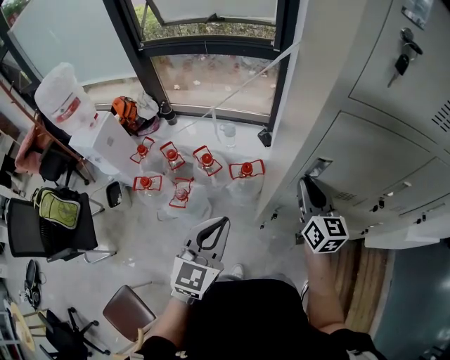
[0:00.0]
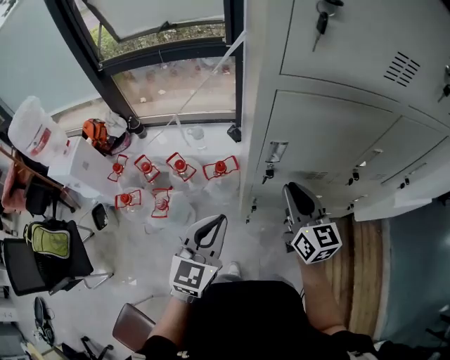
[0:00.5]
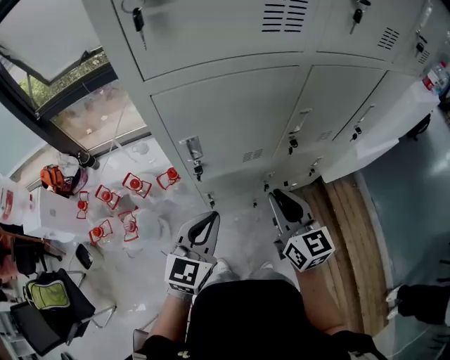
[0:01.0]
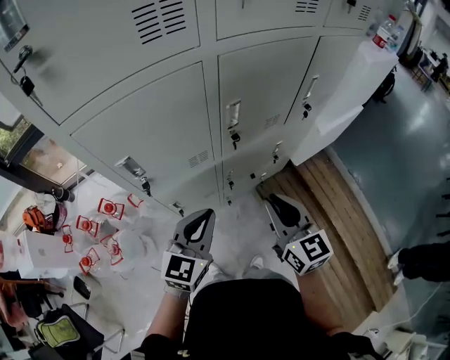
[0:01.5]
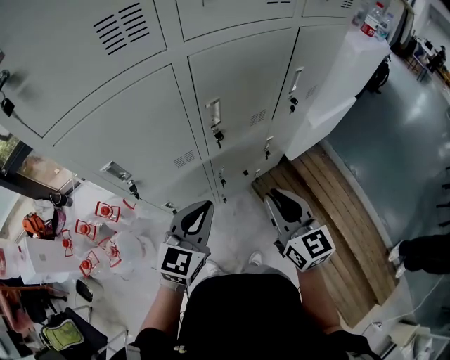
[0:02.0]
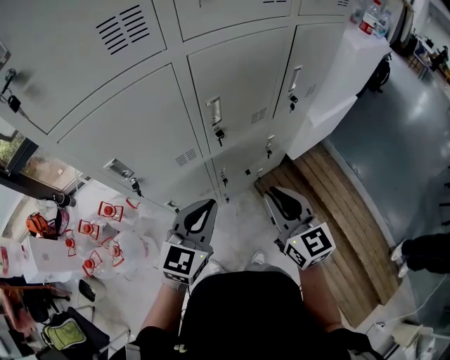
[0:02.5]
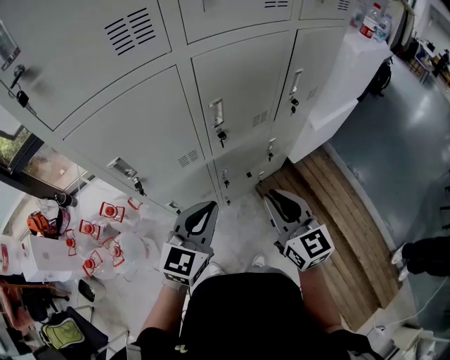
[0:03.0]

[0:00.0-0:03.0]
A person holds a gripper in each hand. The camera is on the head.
0:00.0 to 0:01.5: The right gripper shifts by roughly 35 cm, and changes its angle by some 20 degrees. The left gripper ends up roughly 30 cm from where it was, and changes its angle by approximately 40 degrees.
0:01.5 to 0:03.0: The left gripper changes place by roughly 5 cm.

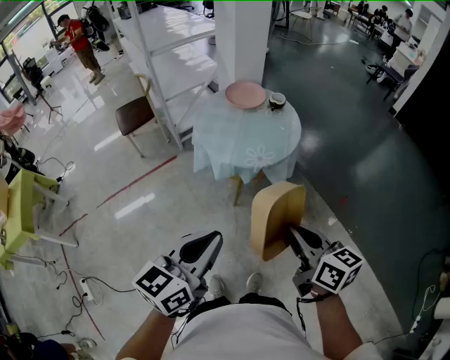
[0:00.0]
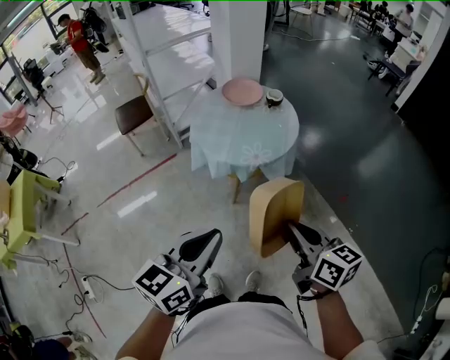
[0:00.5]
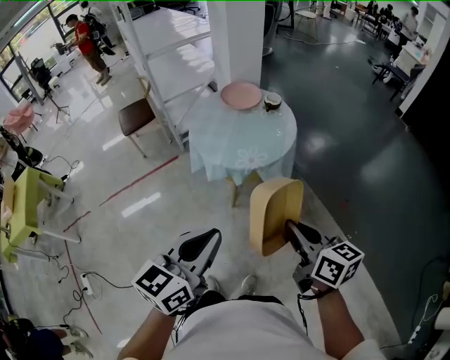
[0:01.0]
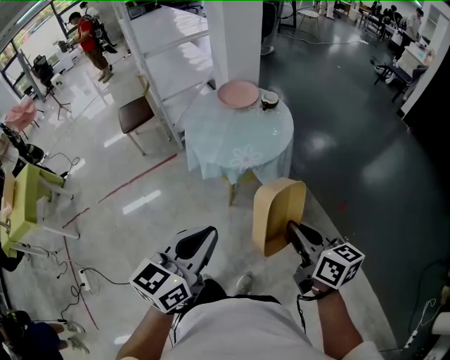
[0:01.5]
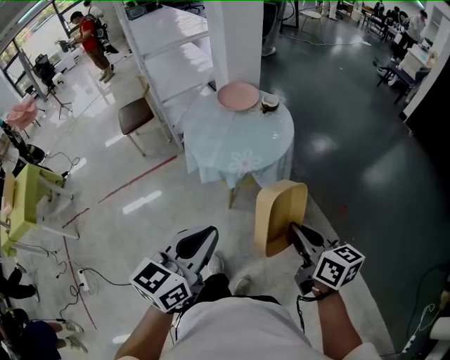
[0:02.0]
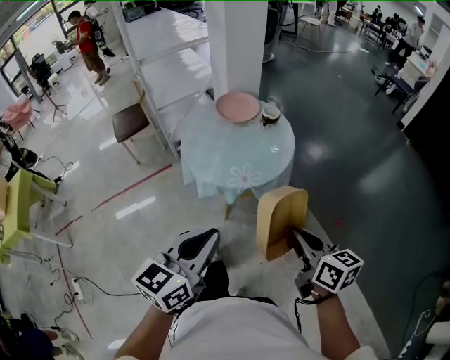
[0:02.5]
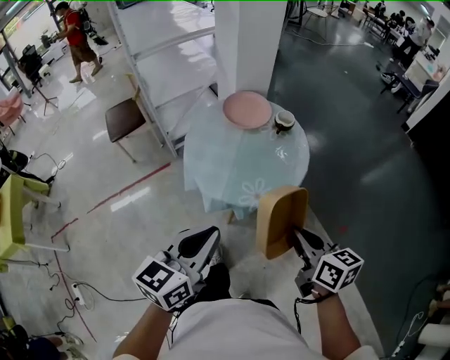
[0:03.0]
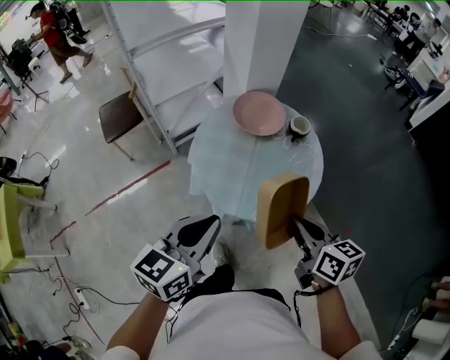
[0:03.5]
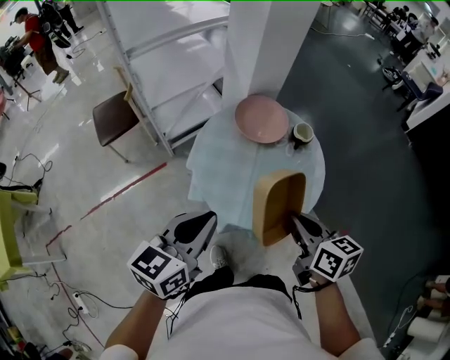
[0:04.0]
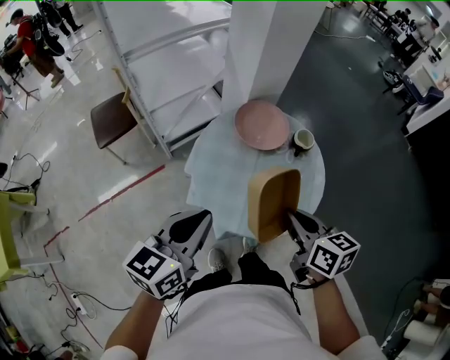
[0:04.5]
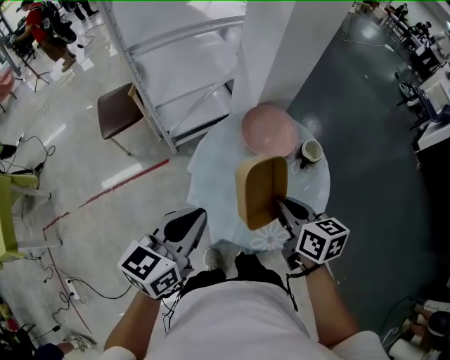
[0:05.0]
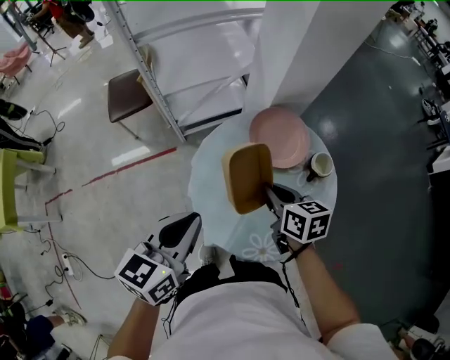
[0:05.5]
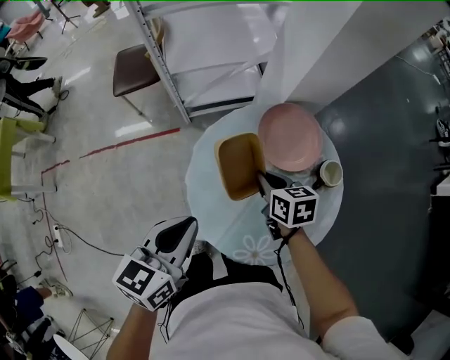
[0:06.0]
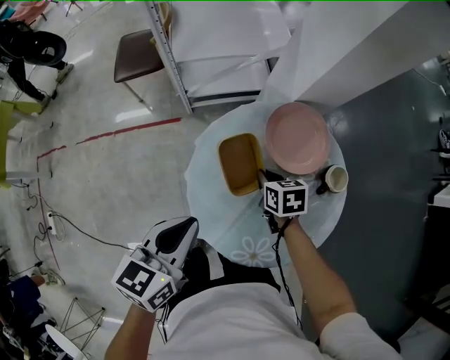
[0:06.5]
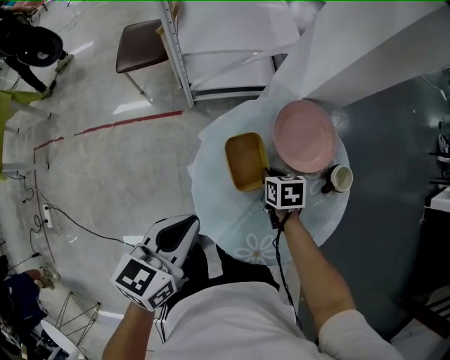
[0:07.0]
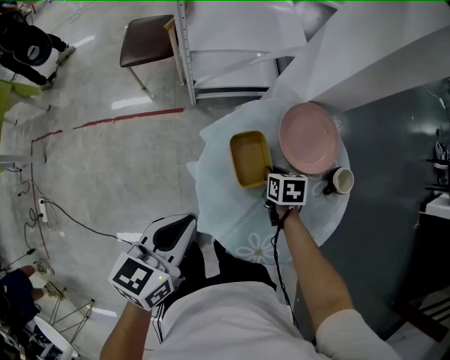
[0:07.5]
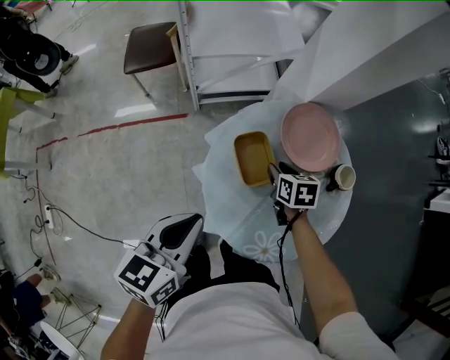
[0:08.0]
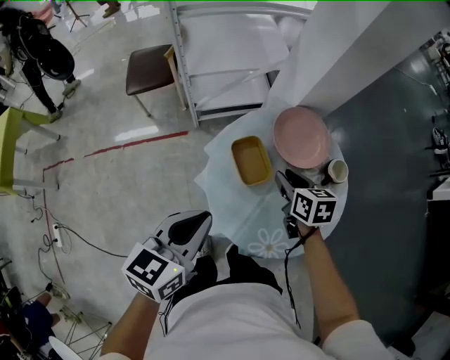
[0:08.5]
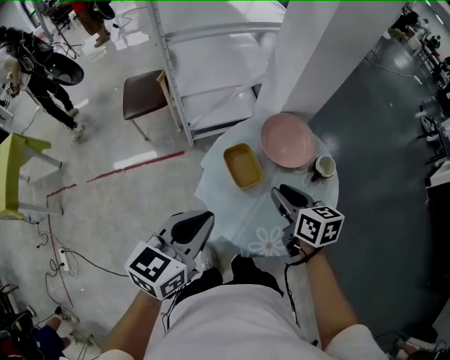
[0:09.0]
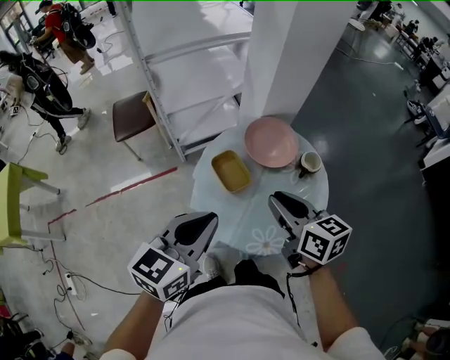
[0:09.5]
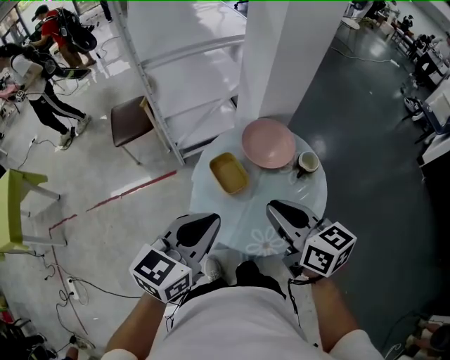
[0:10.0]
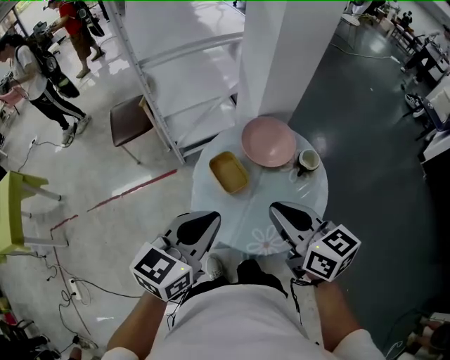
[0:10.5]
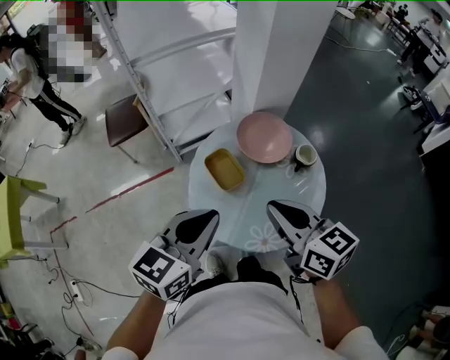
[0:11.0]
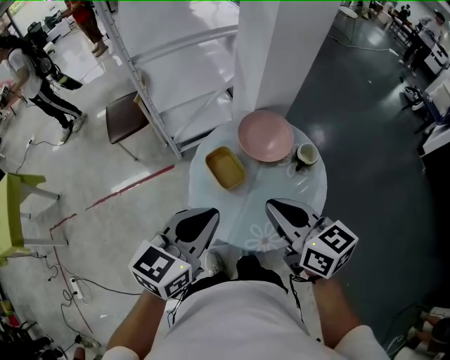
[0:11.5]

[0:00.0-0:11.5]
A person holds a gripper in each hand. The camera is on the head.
0:00.0 to 0:02.0: Both grippers move to the right, roughly 15 cm.
0:02.0 to 0:04.0: The pair of grippers is taken forward and to the left, some 40 cm.
0:04.0 to 0:06.0: The right gripper travels forward and downward by about 30 cm, and swivels about 30 degrees. Meanwhile the left gripper goes approximately 15 cm forward and downward, and rotates about 30 degrees.
0:06.0 to 0:07.5: The right gripper is displaced downward by about 10 cm, and swivels some 20 degrees; the left gripper travels to the left by about 5 cm.
0:07.5 to 0:09.5: The left gripper goes some 15 cm upward, to the right and backward, and rotates about 30 degrees, while the right gripper shifts roughly 35 cm upward and backward, and angles its fingers upward, by roughly 40 degrees.
0:09.5 to 0:11.5: The grippers move only a little.

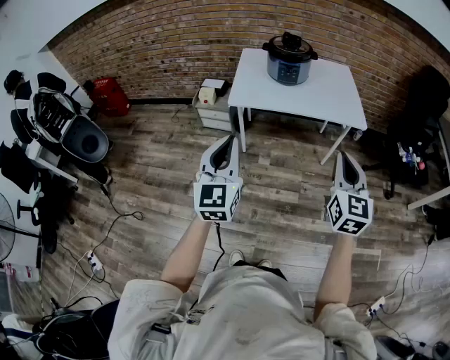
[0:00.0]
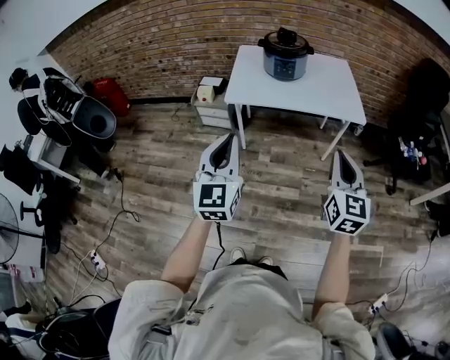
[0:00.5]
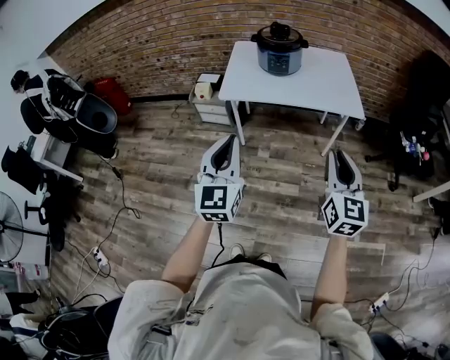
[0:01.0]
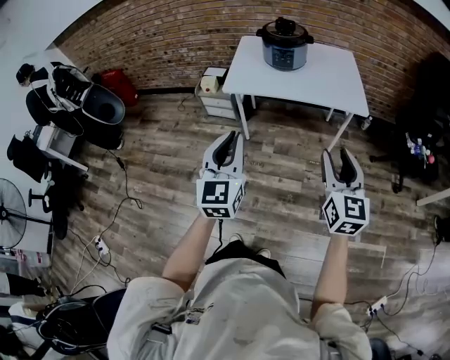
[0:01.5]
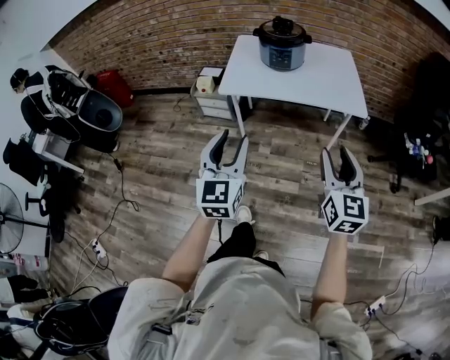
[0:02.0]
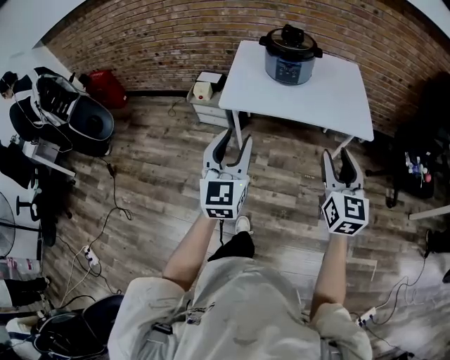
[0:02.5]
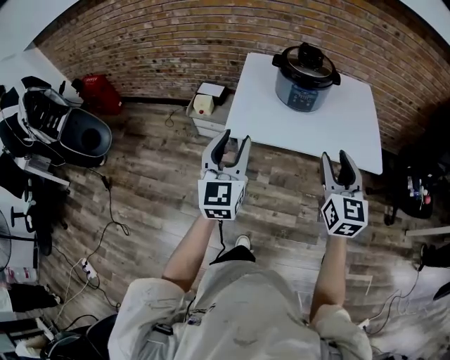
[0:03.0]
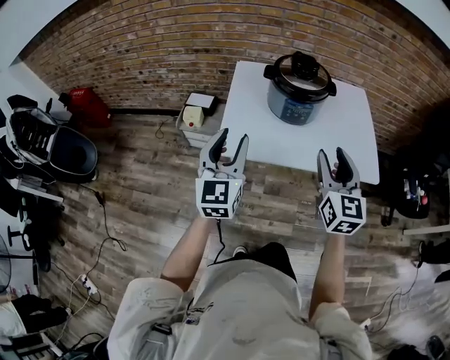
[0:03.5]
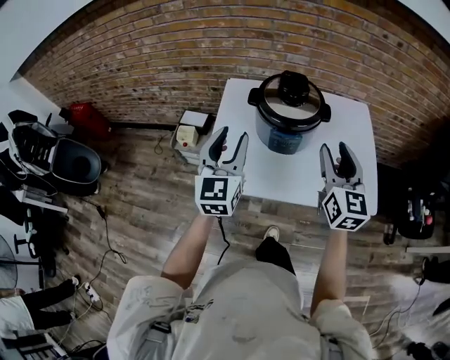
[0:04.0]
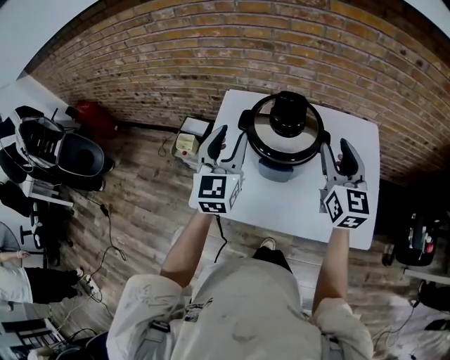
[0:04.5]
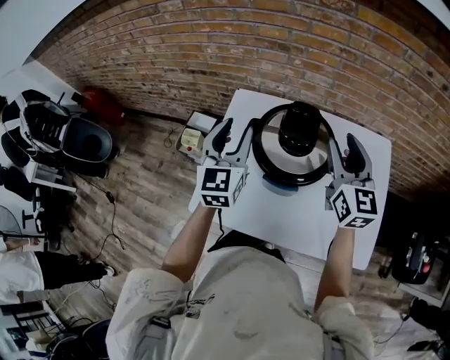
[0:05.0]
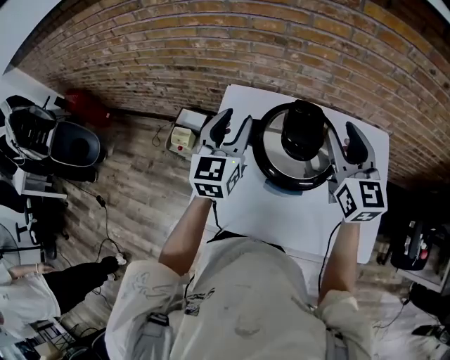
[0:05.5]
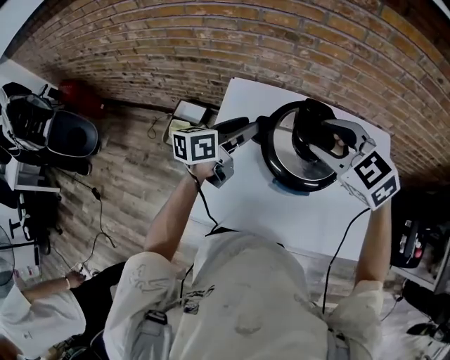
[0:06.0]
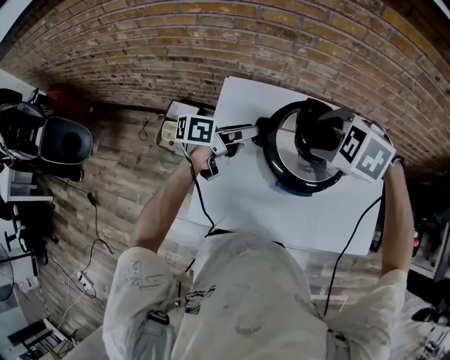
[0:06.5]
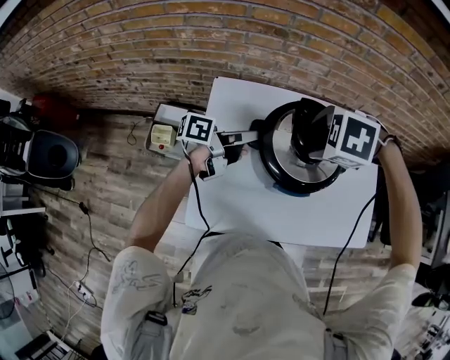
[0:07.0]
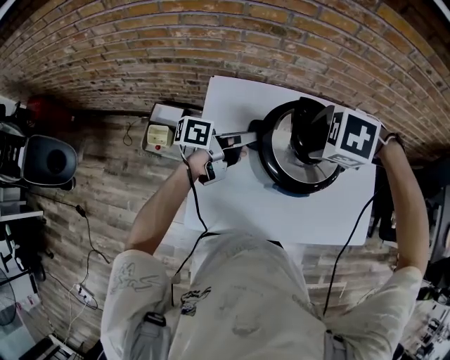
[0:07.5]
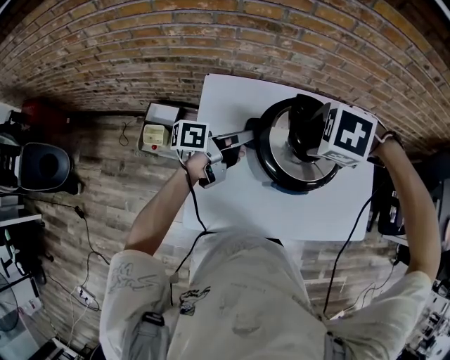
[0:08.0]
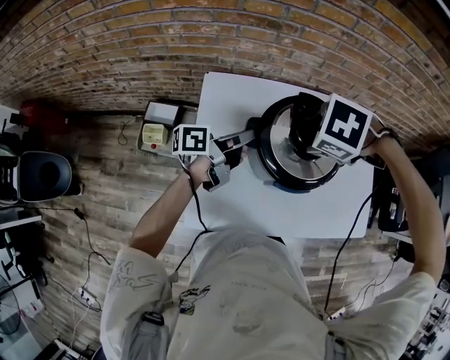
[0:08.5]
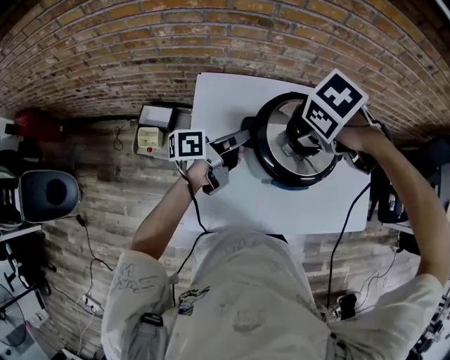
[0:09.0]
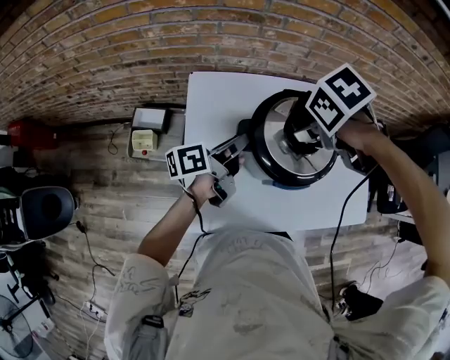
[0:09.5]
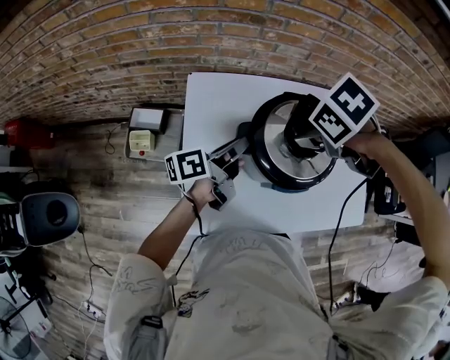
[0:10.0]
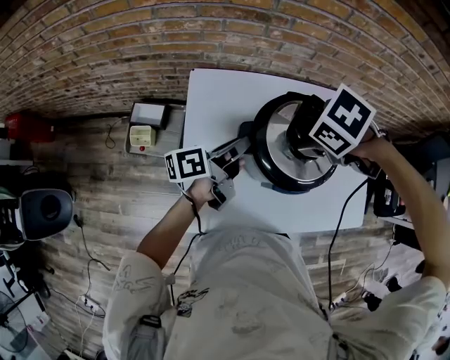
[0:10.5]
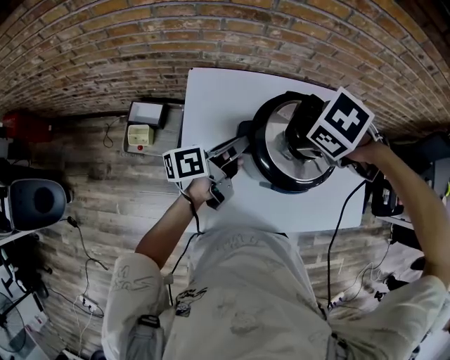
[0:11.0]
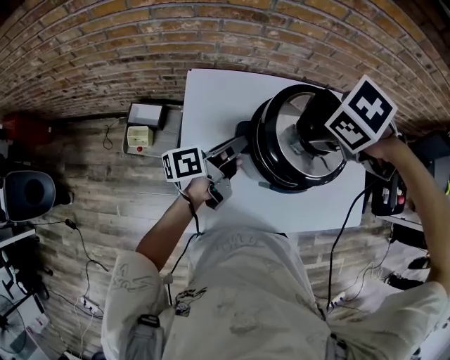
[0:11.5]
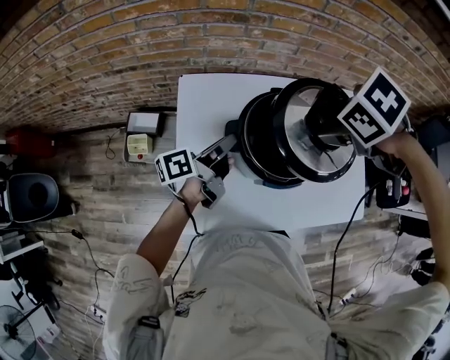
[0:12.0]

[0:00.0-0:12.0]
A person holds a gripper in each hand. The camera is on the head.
0:00.0 to 0:02.0: The right gripper changes place by roughly 5 cm, and opens up. Meanwhile the left gripper heads to the right, covering some 10 cm, and opens.
0:02.0 to 0:04.0: Both grippers are carried forward, roughly 50 cm.
0:04.0 to 0:06.0: The left gripper is displaced forward and downward by roughly 25 cm, and rotates approximately 60 degrees; the right gripper goes approximately 20 cm forward, and angles its fingers downward, by roughly 30 degrees.
0:06.0 to 0:08.0: The left gripper moves approximately 5 cm, turns by about 40 degrees, and closes up. Meanwhile the right gripper is displaced downward by roughly 5 cm, and angles its fingers downward, by about 50 degrees.
0:08.0 to 0:10.0: The right gripper turns by about 40 degrees.
0:10.0 to 0:12.0: The right gripper moves approximately 10 cm.
